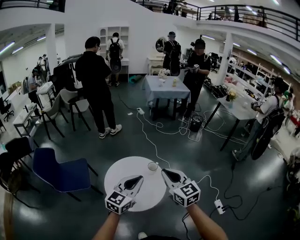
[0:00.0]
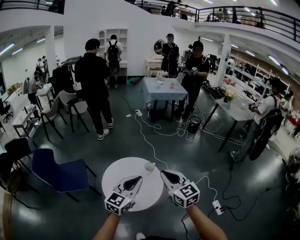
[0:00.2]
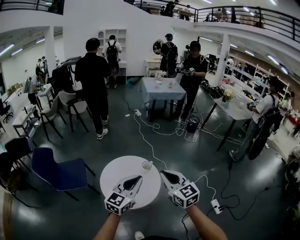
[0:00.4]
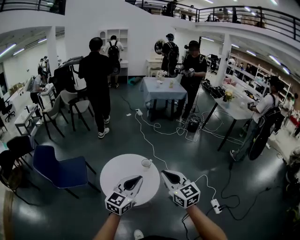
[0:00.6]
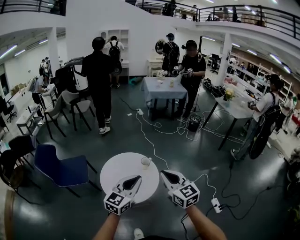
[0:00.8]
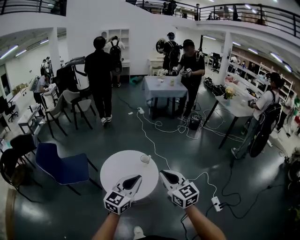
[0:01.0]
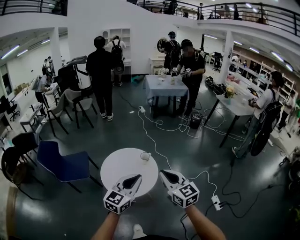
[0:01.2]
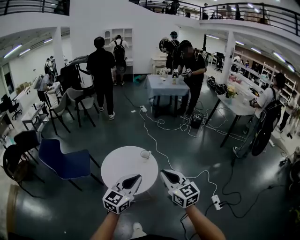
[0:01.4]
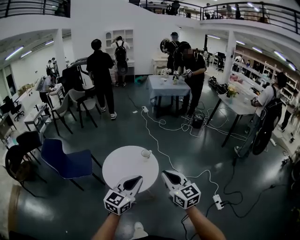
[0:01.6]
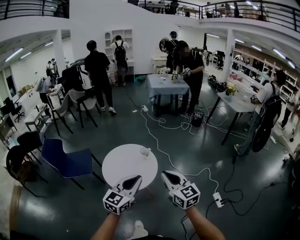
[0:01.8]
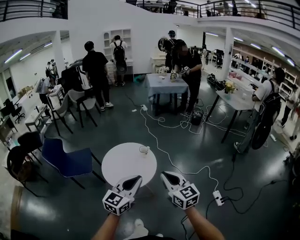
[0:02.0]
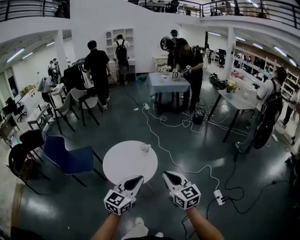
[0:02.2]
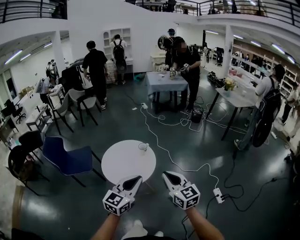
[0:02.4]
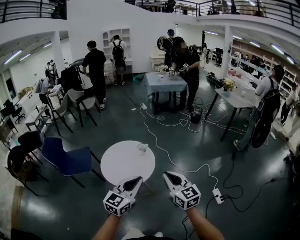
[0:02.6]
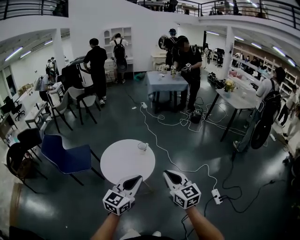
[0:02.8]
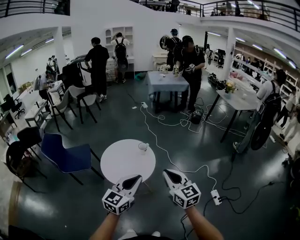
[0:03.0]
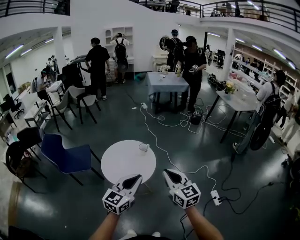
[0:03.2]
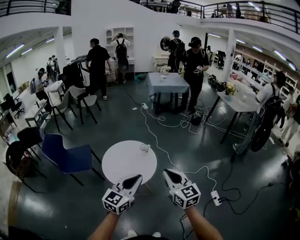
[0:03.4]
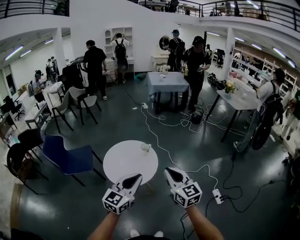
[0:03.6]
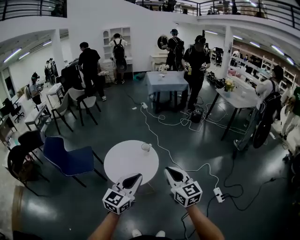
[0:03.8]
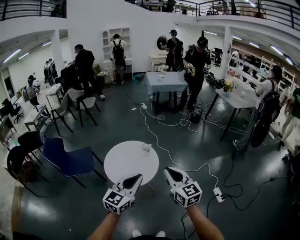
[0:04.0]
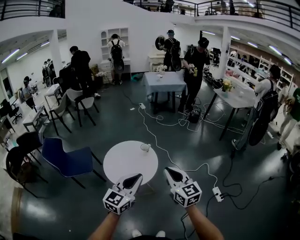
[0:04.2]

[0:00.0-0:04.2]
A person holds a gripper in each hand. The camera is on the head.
0:00.0 to 0:01.4: Both grippers move backward and to the right, roughly 25 cm.
0:01.4 to 0:02.8: The two grippers go approximately 10 cm backward and to the right.
0:02.8 to 0:04.2: The two grippers go some 5 cm to the left.

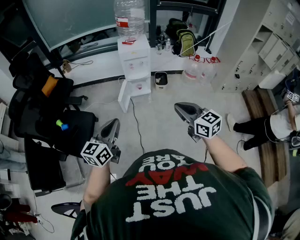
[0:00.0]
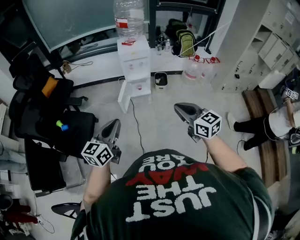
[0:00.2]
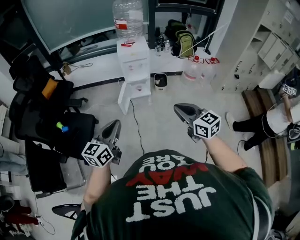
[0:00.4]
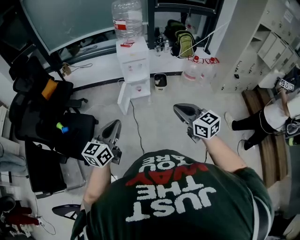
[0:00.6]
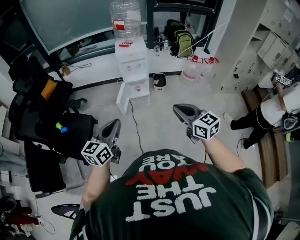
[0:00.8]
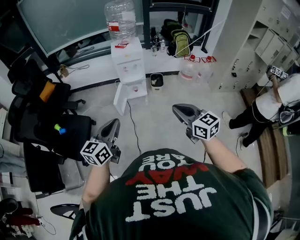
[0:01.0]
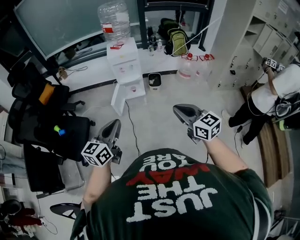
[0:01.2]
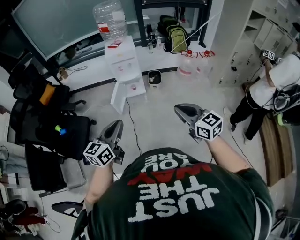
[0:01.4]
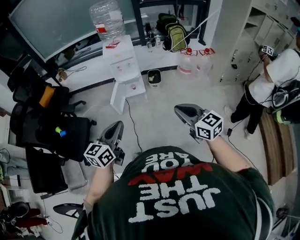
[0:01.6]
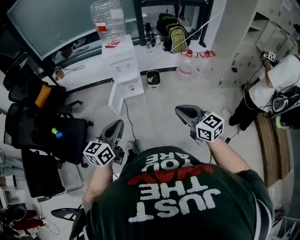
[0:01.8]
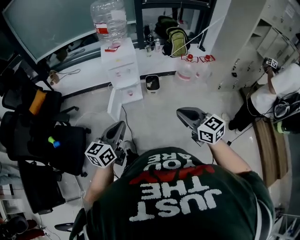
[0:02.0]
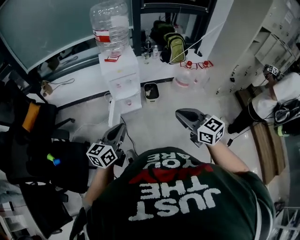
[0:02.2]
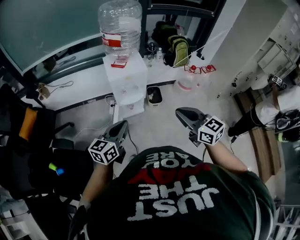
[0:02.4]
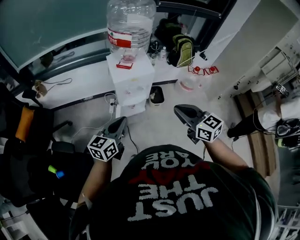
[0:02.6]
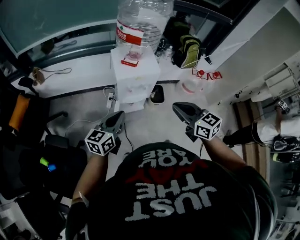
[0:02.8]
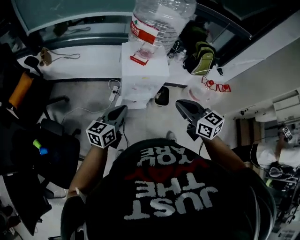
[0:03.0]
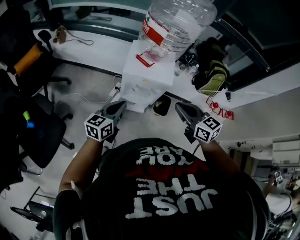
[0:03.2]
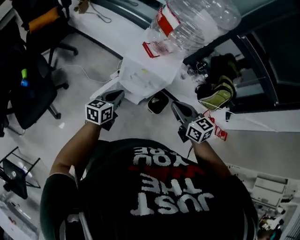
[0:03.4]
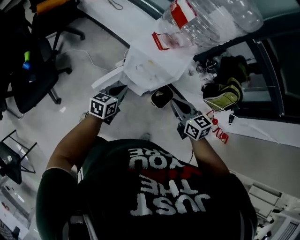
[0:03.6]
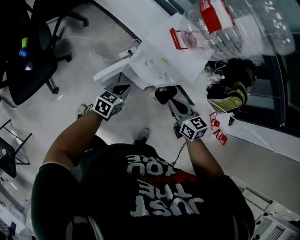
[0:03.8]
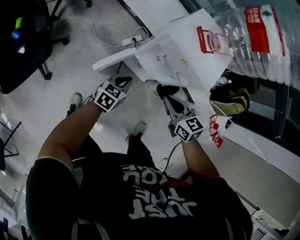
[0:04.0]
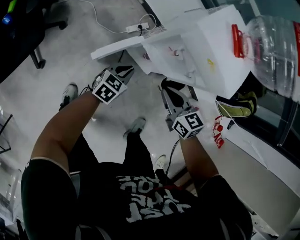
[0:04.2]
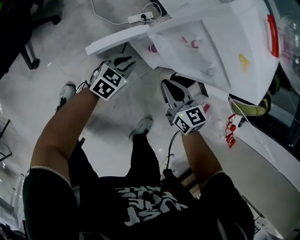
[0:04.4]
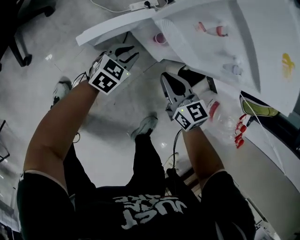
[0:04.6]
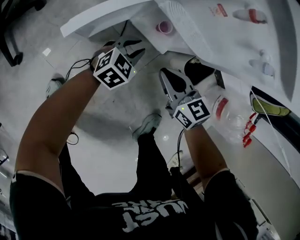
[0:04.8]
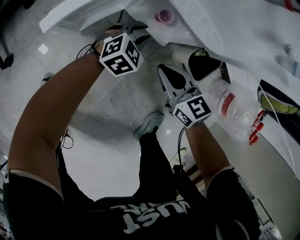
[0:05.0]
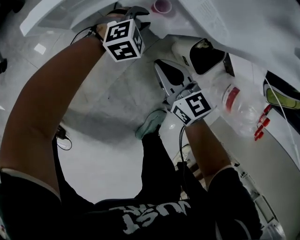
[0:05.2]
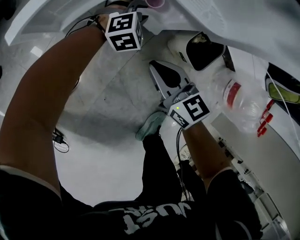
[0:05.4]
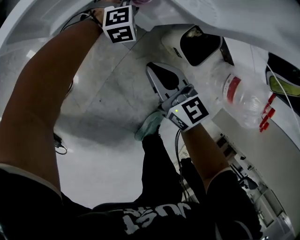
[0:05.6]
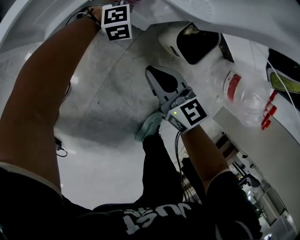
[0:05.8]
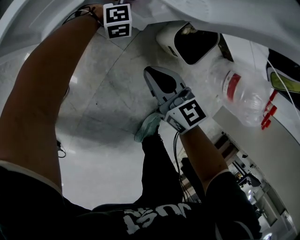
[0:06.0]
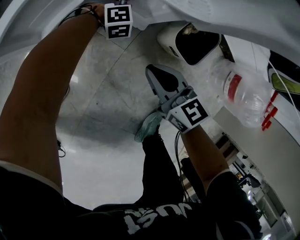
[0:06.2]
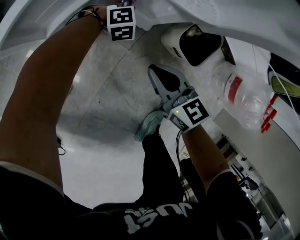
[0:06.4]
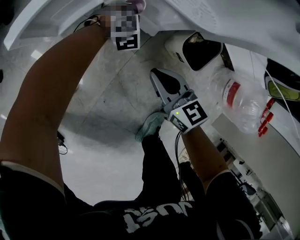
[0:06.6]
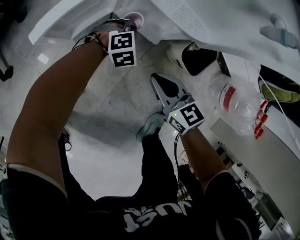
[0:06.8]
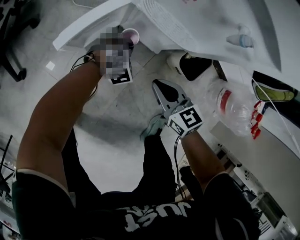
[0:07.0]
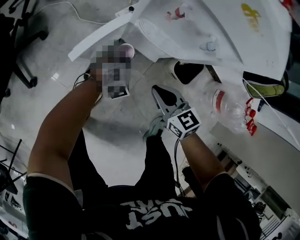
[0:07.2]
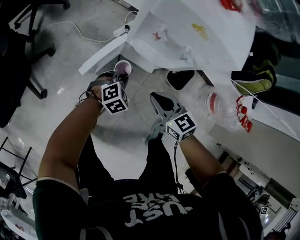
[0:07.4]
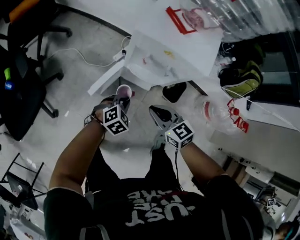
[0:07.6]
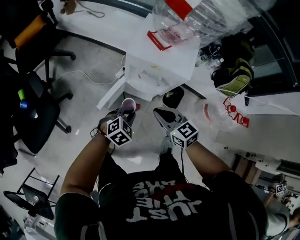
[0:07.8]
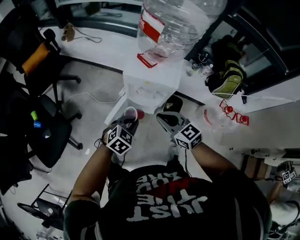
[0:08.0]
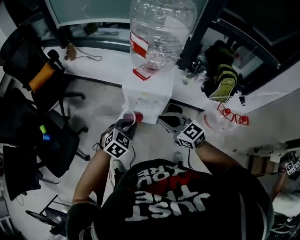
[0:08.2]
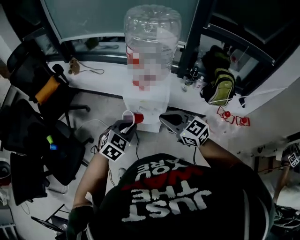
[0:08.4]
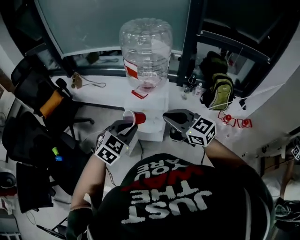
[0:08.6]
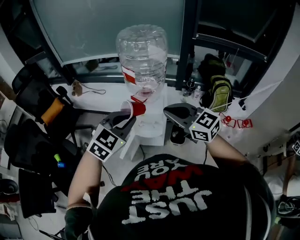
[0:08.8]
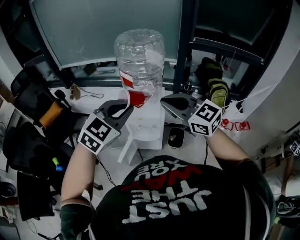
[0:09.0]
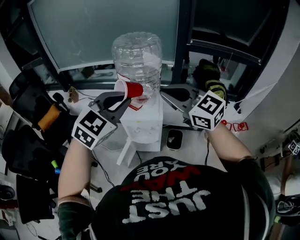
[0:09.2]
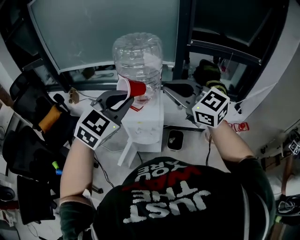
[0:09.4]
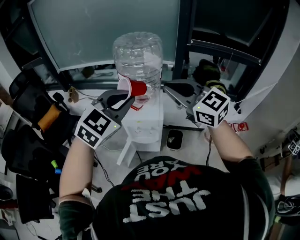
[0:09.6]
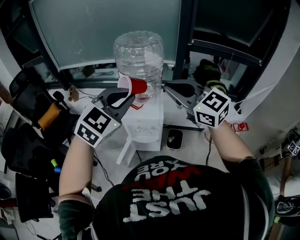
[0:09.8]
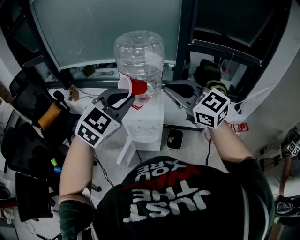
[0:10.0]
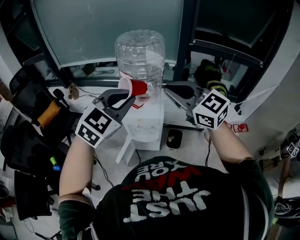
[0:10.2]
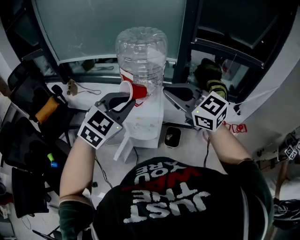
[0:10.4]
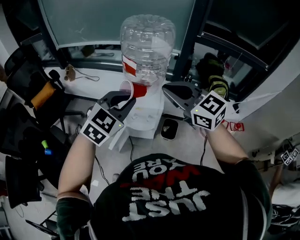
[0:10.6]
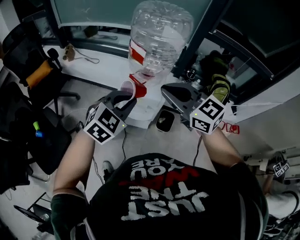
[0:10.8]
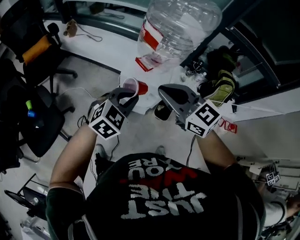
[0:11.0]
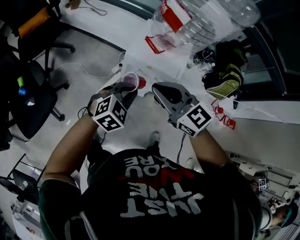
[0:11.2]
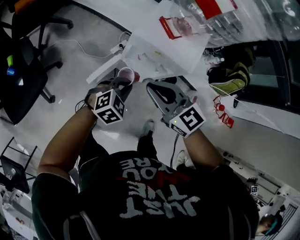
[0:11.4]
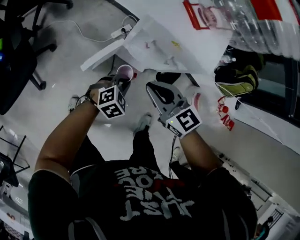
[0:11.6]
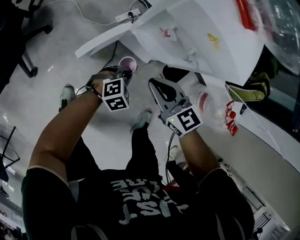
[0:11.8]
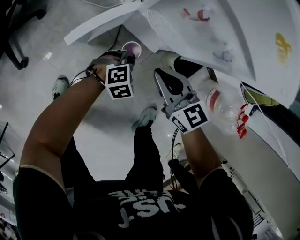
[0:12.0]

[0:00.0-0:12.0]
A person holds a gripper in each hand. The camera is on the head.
0:00.0 to 0:01.6: The grippers both shift to the right by roughly 15 cm.
0:01.6 to 0:03.0: Both grippers are carried forward and to the left, about 60 cm.
0:03.0 to 0:04.4: The grippers both shift downward by approximately 50 cm. The left gripper changes its angle by approximately 30 degrees. The right gripper rotates roughly 40 degrees.
0:04.4 to 0:06.0: Both grippers move downward and to the right, roughly 35 cm. The left gripper rolls clockwise, seen from behind, by some 60 degrees.
0:06.0 to 0:07.6: Both grippers move upward, roughly 40 cm. The left gripper rotates roughly 30 degrees.
0:07.6 to 0:09.0: Both grippers move upward, some 60 cm. The left gripper angles its fingers upward, by roughly 30 degrees. The right gripper changes its angle by roughly 30 degrees.
0:10.4 to 0:12.0: The two grippers go approximately 80 cm downward. The left gripper points its fingers approximately 40 degrees further downward, while the right gripper changes its angle by about 30 degrees.

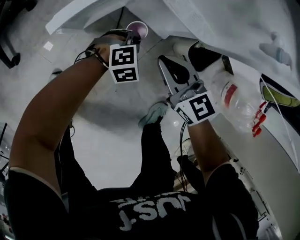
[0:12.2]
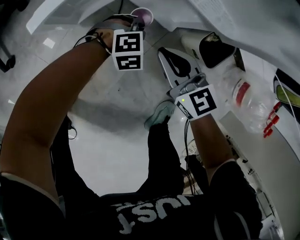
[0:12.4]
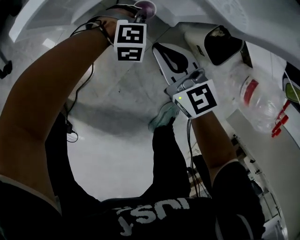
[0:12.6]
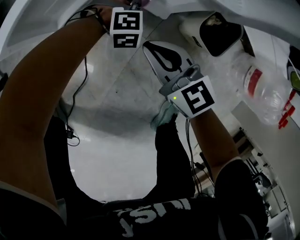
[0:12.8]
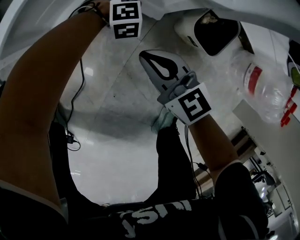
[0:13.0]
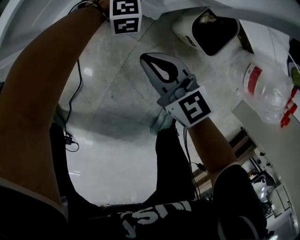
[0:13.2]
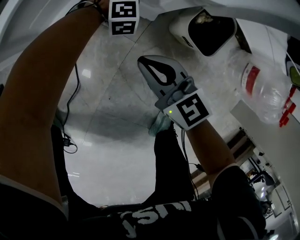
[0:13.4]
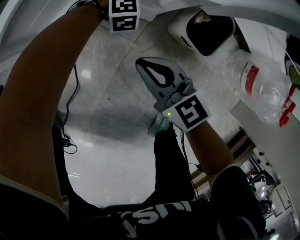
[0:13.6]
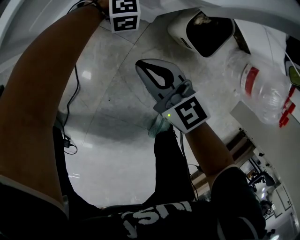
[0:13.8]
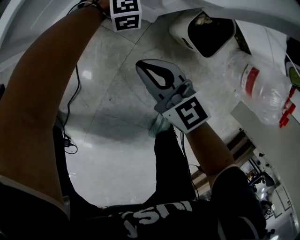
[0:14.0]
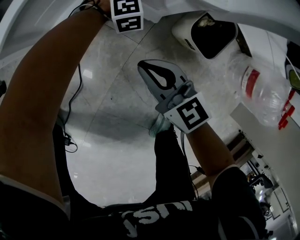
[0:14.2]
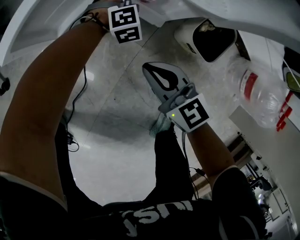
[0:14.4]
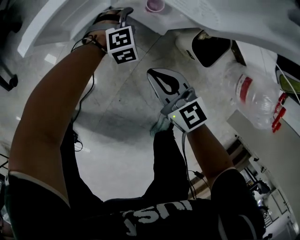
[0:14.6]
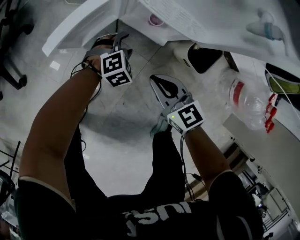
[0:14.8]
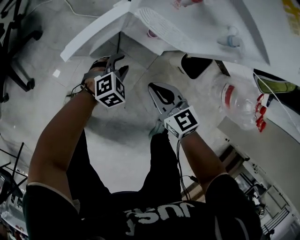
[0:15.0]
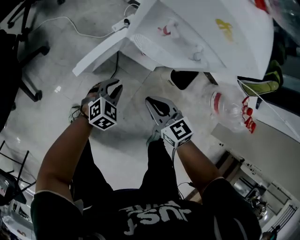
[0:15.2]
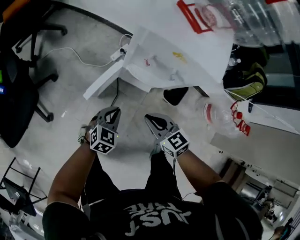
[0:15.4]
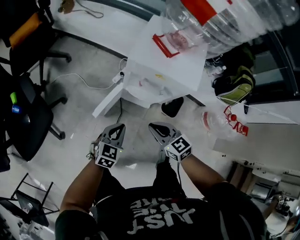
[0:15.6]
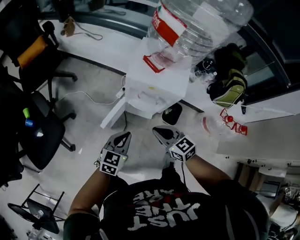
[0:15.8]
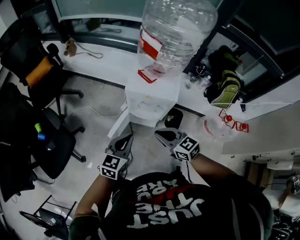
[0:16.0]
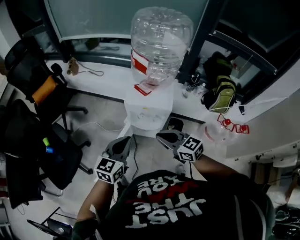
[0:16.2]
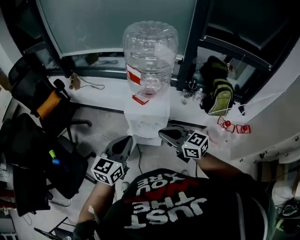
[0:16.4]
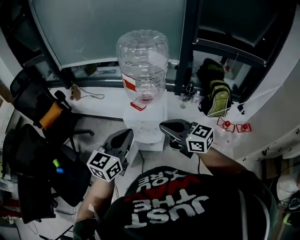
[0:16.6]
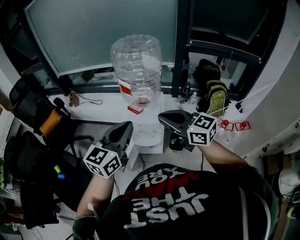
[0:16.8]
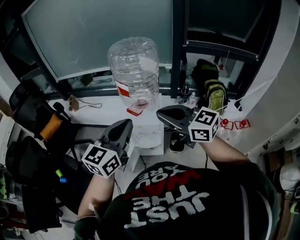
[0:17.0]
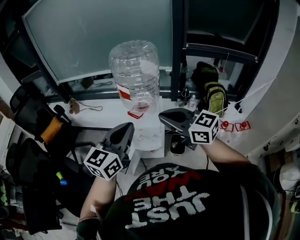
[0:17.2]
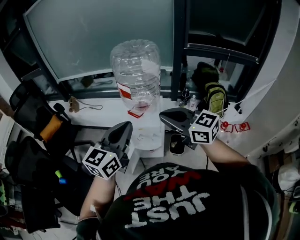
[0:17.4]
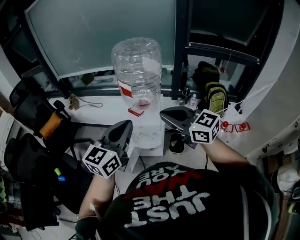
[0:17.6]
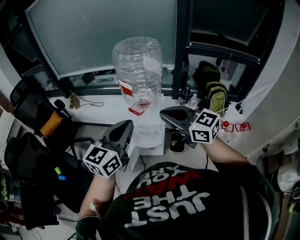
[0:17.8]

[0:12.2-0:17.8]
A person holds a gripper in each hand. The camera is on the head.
0:12.2 to 0:13.6: The right gripper travels downward by roughly 15 cm; the left gripper is displaced forward, downward and to the right by roughly 20 cm, and swivels about 20 degrees.
0:13.6 to 0:15.0: The left gripper shifts approximately 30 cm upward, to the left and backward, turns by roughly 30 degrees, and opens up. Meanwhile the right gripper goes roughly 15 cm upward and to the left.
0:15.0 to 0:16.4: The grippers both shift upward by roughly 70 cm. The left gripper tips its fingers upward by roughly 40 degrees, and closes up, while the right gripper swivels some 20 degrees.
0:16.4 to 0:17.8: Both grippers move upward, roughly 15 cm.

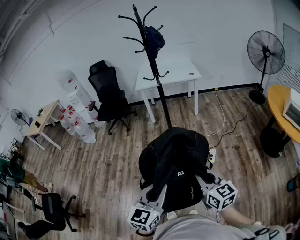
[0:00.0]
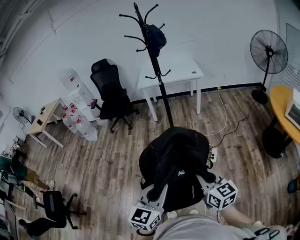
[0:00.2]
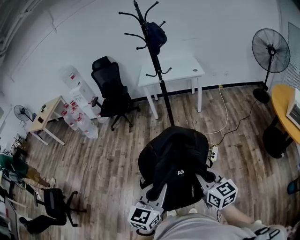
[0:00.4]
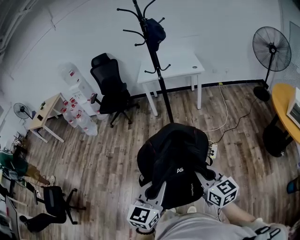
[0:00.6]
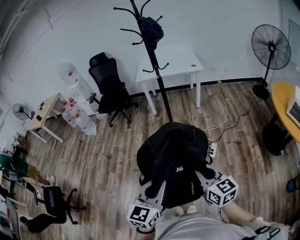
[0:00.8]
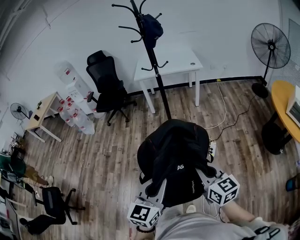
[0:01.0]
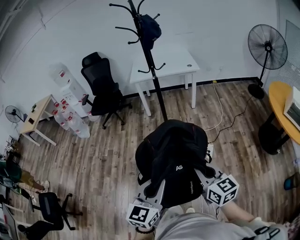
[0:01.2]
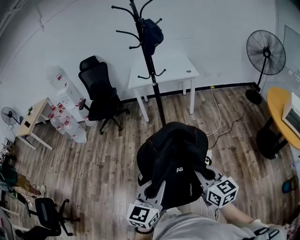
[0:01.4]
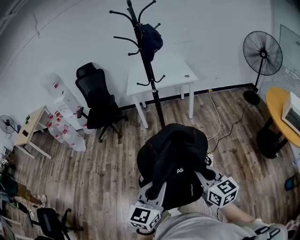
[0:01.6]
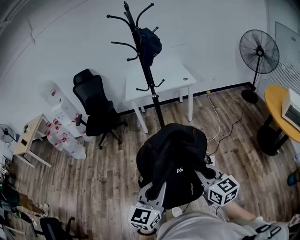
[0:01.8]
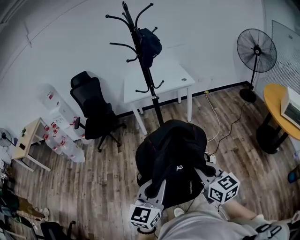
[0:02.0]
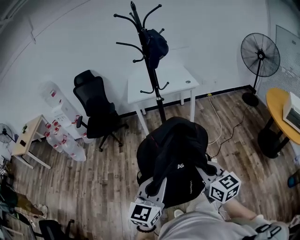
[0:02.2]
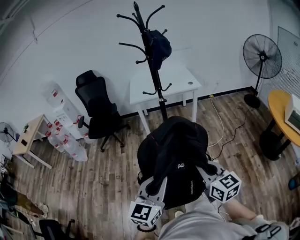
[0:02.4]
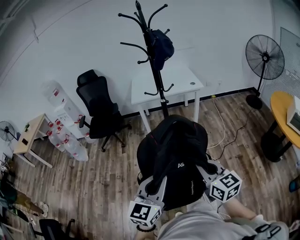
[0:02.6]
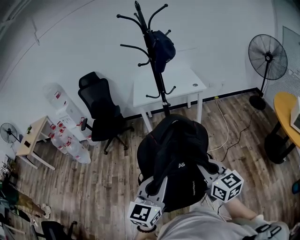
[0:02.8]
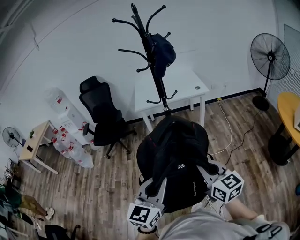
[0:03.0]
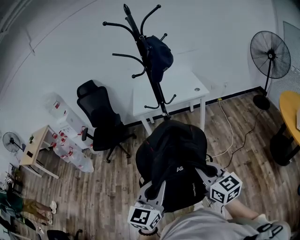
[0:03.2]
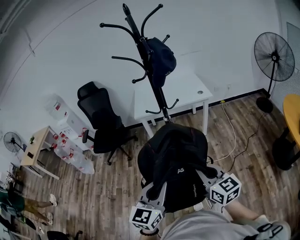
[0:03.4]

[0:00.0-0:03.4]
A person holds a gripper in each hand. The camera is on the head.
0:00.0 to 0:01.6: Both grippers travel together forward, some 15 cm.
0:01.6 to 0:03.4: Both grippers travel together forward, some 30 cm.
